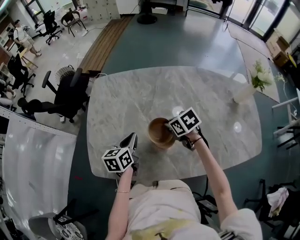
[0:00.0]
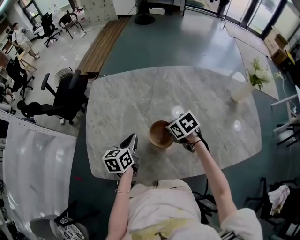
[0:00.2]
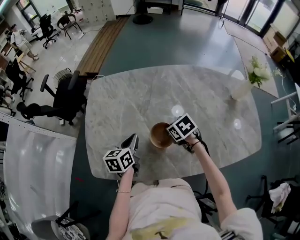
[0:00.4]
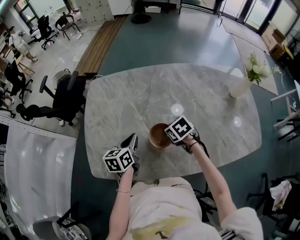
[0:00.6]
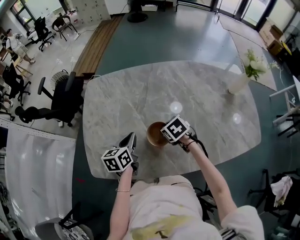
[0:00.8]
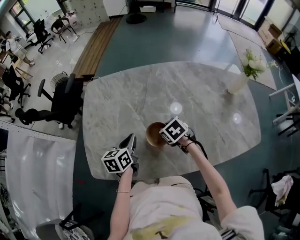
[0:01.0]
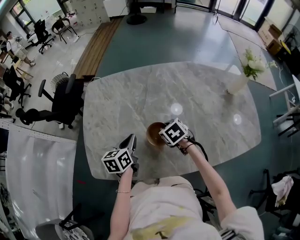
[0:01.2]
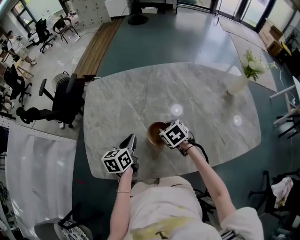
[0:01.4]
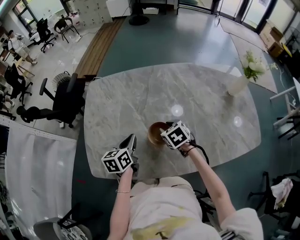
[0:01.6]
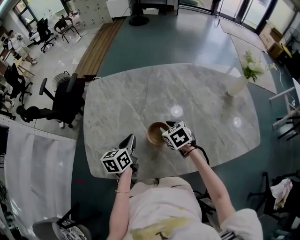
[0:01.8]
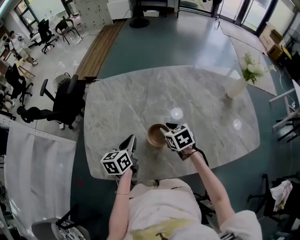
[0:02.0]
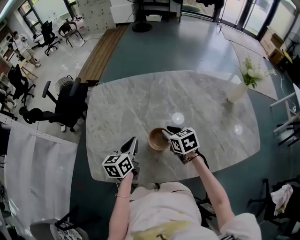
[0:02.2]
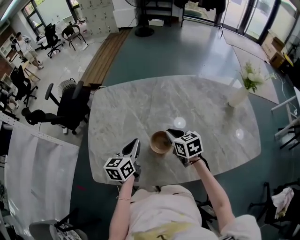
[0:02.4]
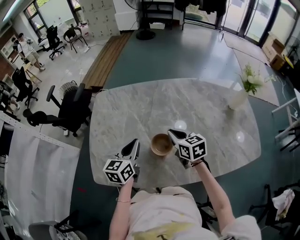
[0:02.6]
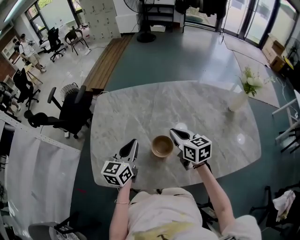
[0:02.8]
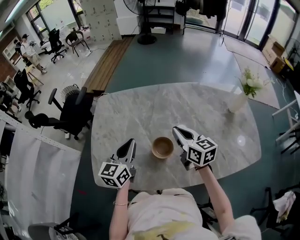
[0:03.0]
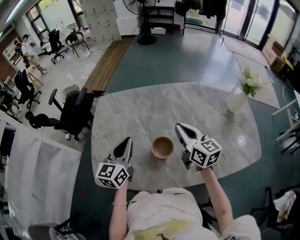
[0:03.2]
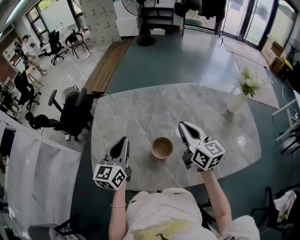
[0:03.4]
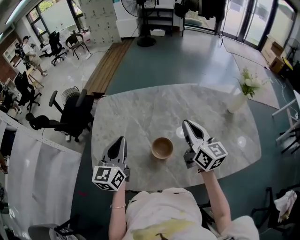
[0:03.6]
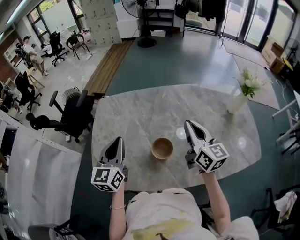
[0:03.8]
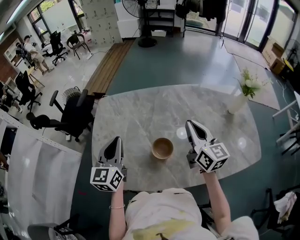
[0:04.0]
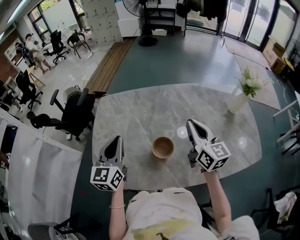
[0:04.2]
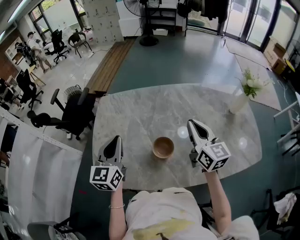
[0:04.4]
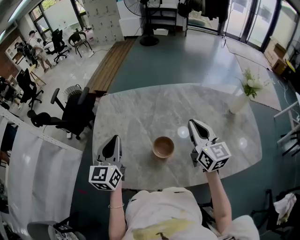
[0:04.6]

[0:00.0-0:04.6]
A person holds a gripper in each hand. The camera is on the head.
0:00.0 to 0:01.6: The right gripper opens.
0:01.6 to 0:03.0: The grippers both shift upward by approximately 15 cm. The left gripper changes its angle by some 30 degrees. The right gripper points its fingers approximately 40 degrees further upward, and closes up.
0:03.0 to 0:04.6: The right gripper heads upward and to the right, covering approximately 10 cm. The left gripper is displaced upward and to the left by about 10 cm.

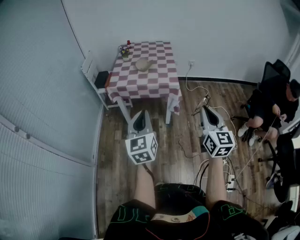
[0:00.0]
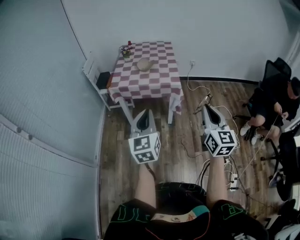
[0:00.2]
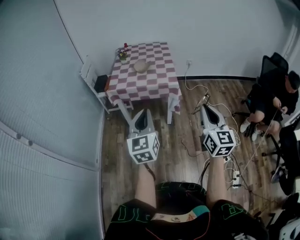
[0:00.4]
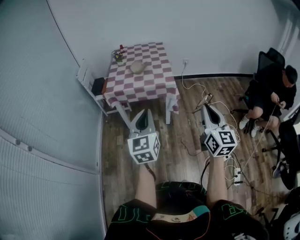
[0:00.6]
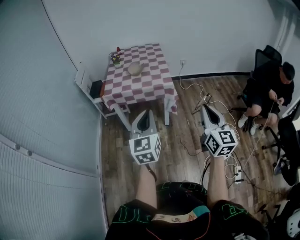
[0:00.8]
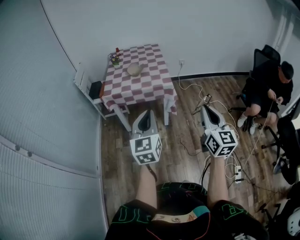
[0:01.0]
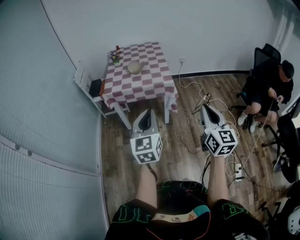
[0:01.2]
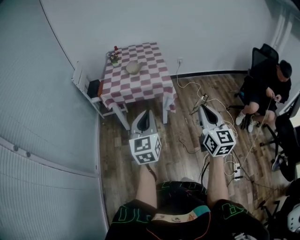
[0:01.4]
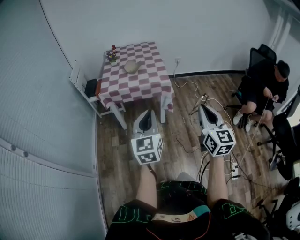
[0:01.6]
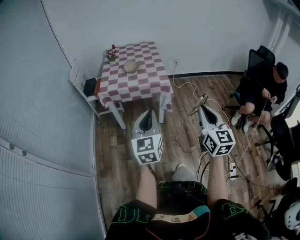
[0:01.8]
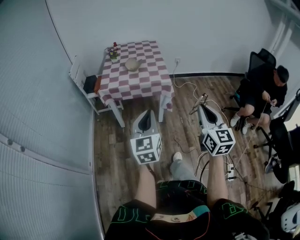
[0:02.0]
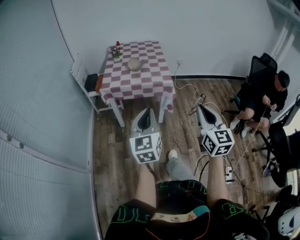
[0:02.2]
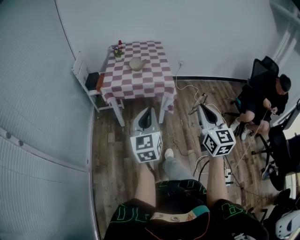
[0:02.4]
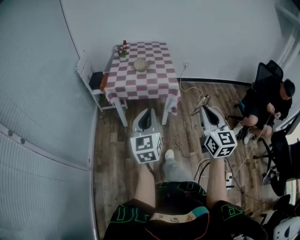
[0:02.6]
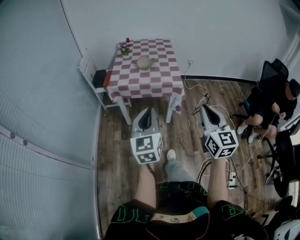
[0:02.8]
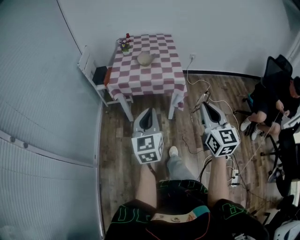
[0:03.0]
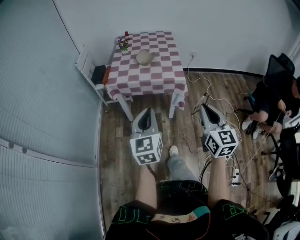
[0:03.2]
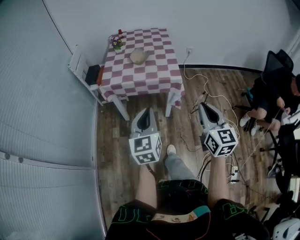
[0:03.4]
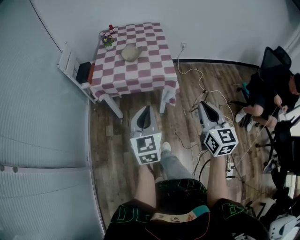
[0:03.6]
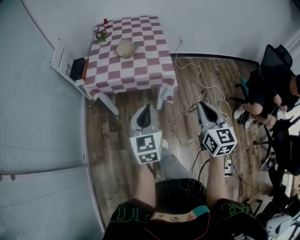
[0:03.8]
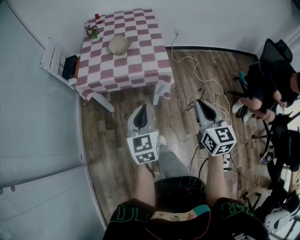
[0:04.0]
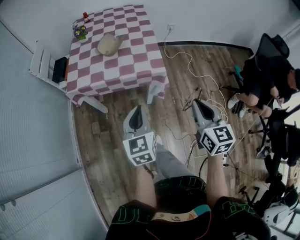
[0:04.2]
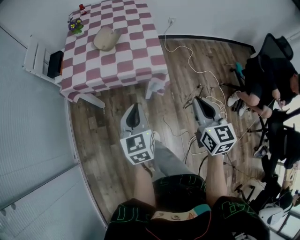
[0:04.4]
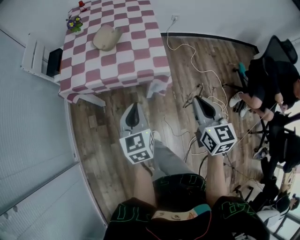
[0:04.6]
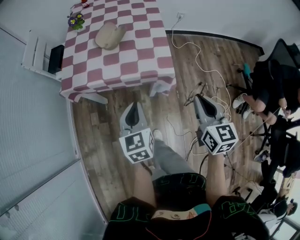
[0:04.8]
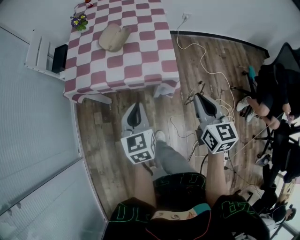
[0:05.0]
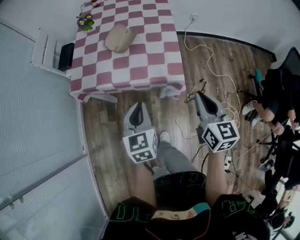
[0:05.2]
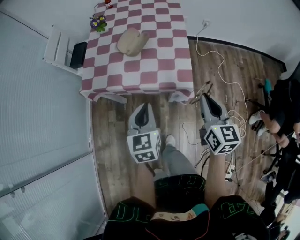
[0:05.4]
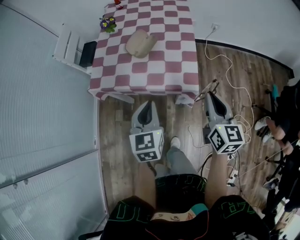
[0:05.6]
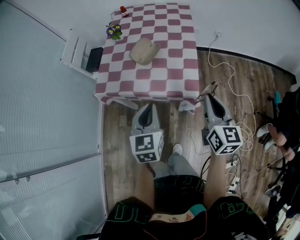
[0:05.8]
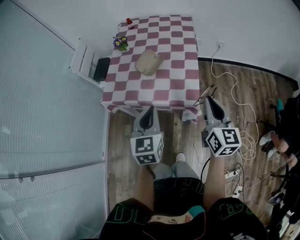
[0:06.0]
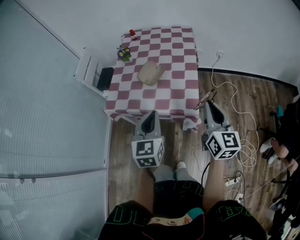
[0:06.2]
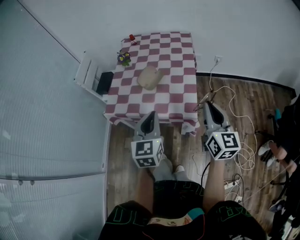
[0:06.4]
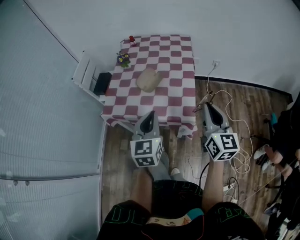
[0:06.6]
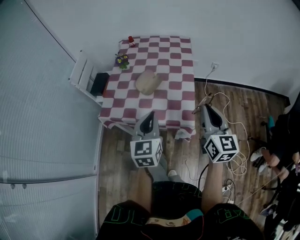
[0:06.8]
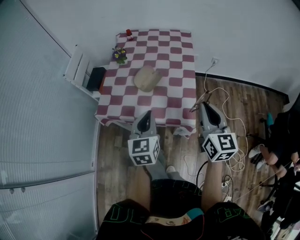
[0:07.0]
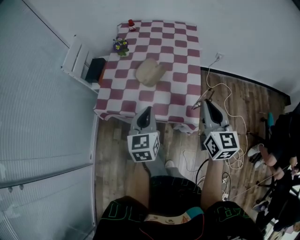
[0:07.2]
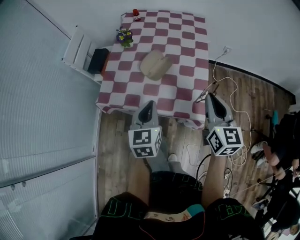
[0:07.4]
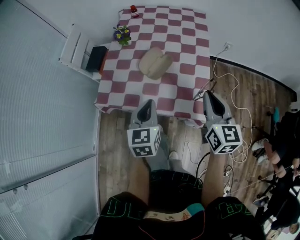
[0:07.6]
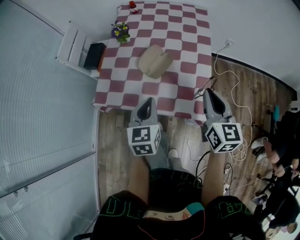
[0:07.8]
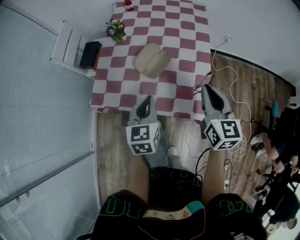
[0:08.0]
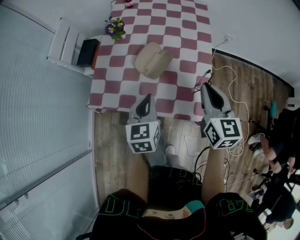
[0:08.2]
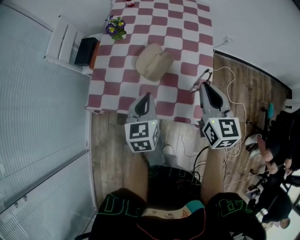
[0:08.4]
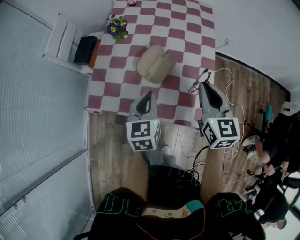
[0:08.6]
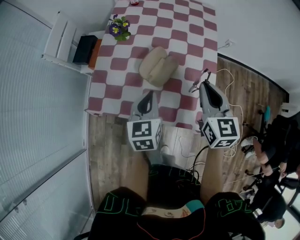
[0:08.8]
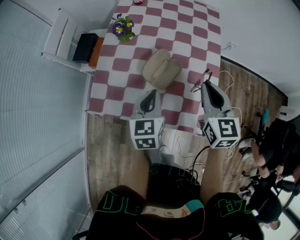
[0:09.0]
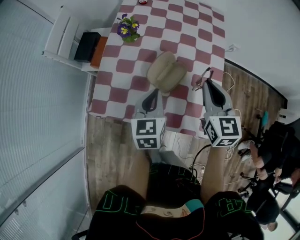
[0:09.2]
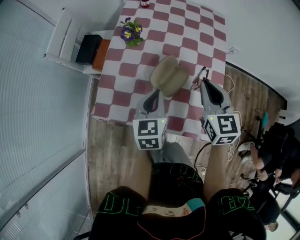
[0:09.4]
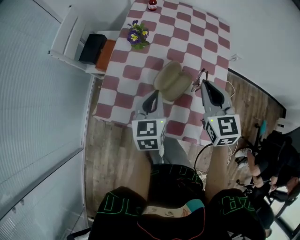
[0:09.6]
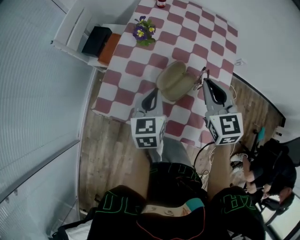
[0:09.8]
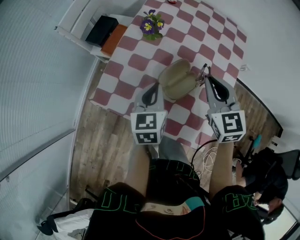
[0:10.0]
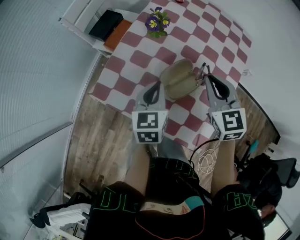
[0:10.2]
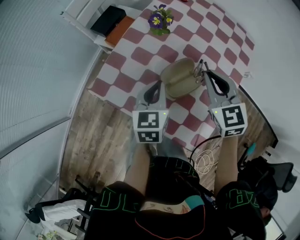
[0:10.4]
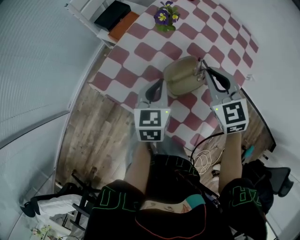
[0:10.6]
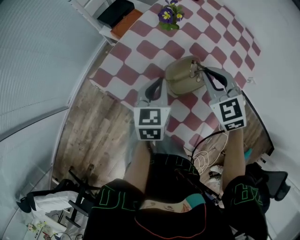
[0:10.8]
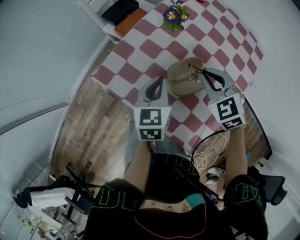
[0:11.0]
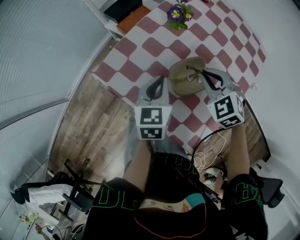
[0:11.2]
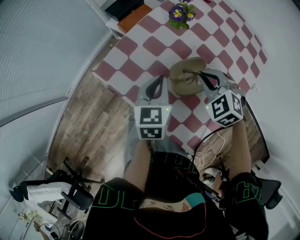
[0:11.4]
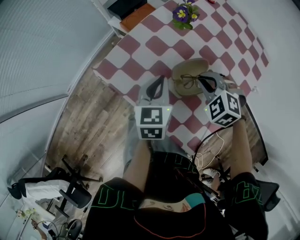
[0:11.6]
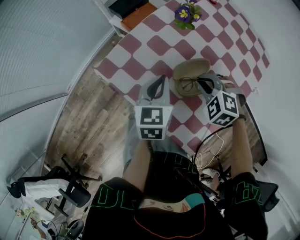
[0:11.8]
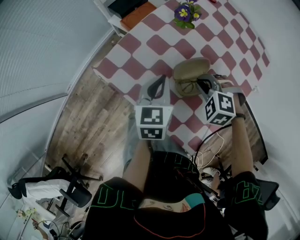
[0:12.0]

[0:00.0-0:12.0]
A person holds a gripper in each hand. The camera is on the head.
0:00.0 to 0:01.6: The grippers move only a little.
0:01.6 to 0:03.0: The left gripper moves roughly 5 cm. The right gripper travels forward by approximately 5 cm.
0:03.0 to 0:04.4: The left gripper shifts some 25 cm forward and downward; the right gripper is displaced forward, downward and to the right by some 25 cm.
0:04.4 to 0:06.0: The right gripper travels forward by approximately 20 cm; the left gripper moves forward and upward, some 15 cm.
0:06.0 to 0:07.6: The left gripper is displaced forward and downward by about 10 cm; the right gripper moves forward, approximately 10 cm.
0:07.6 to 0:09.0: The right gripper heads forward and to the left, covering roughly 15 cm; the left gripper travels forward by roughly 10 cm.
0:09.0 to 0:10.4: The left gripper is displaced forward by about 5 cm. Meanwhile the right gripper heads forward and to the left, covering approximately 15 cm, and changes its angle by approximately 40 degrees.
0:10.4 to 0:12.0: The right gripper is displaced downward by about 15 cm, and tilts its fingers about 40 degrees downward.

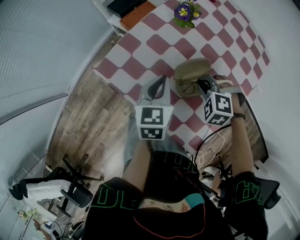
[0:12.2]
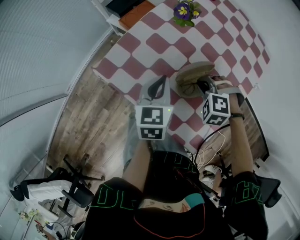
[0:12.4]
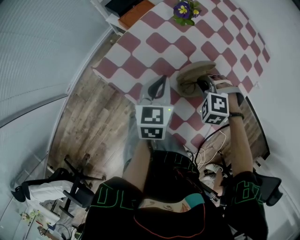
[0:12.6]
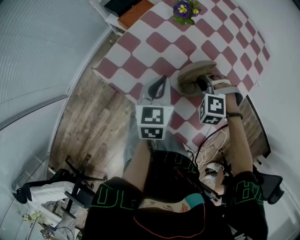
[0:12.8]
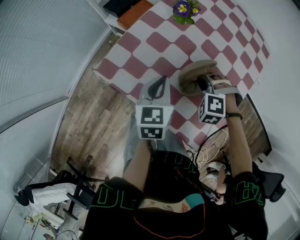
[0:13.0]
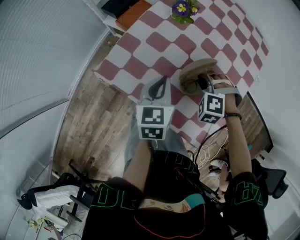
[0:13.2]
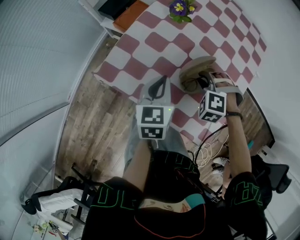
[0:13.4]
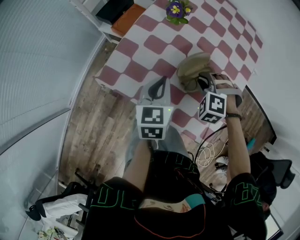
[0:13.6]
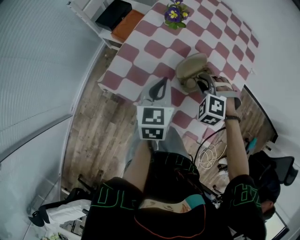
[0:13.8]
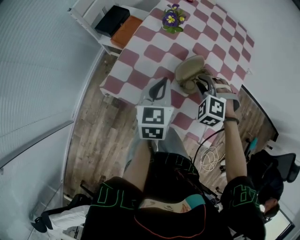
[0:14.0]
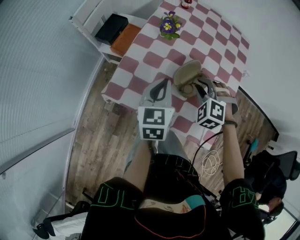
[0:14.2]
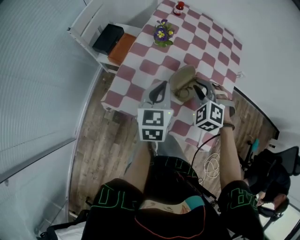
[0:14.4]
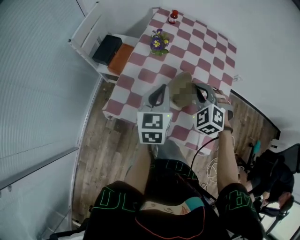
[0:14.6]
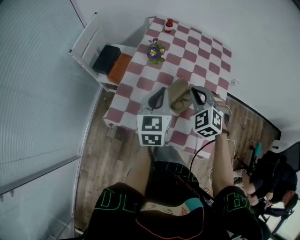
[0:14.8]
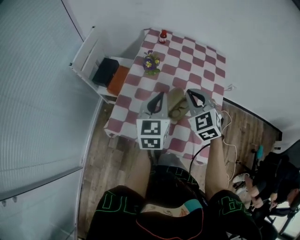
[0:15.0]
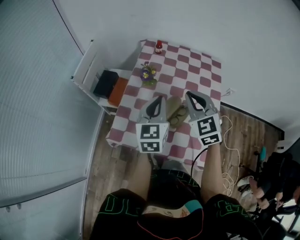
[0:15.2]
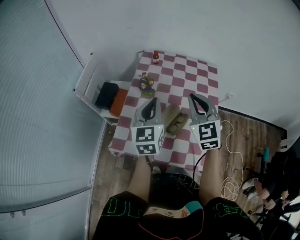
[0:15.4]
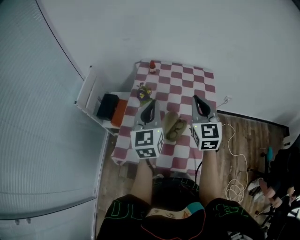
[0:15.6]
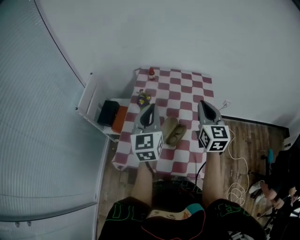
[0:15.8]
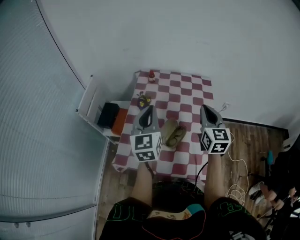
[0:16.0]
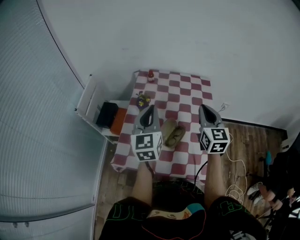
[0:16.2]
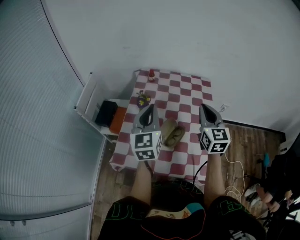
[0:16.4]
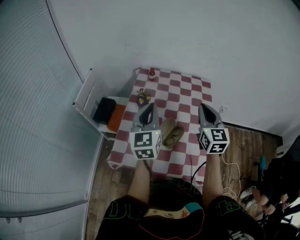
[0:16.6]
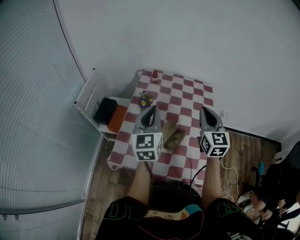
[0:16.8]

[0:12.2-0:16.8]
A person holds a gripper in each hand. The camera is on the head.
0:12.2 to 0:13.8: The right gripper swivels some 20 degrees.
0:13.8 to 0:15.2: The right gripper heads upward, covering about 20 cm, angles its fingers upward, by some 40 degrees, and closes. Meanwhile the left gripper goes approximately 15 cm upward and forward, and rotates roughly 20 degrees.
0:15.2 to 0:16.8: The right gripper moves to the right, about 10 cm, and turns by approximately 30 degrees. Meanwhile the left gripper shifts about 5 cm upward.

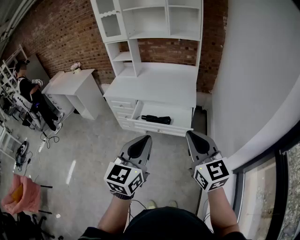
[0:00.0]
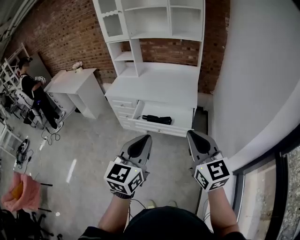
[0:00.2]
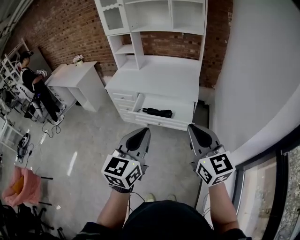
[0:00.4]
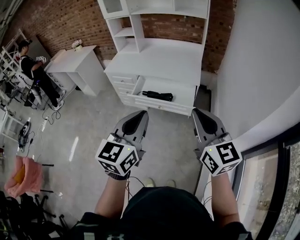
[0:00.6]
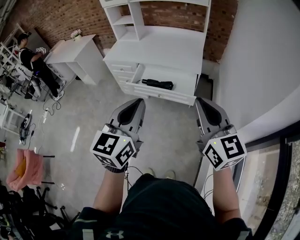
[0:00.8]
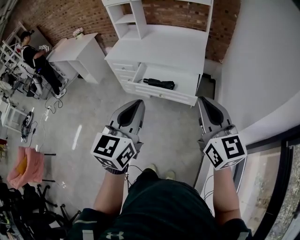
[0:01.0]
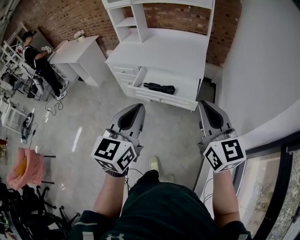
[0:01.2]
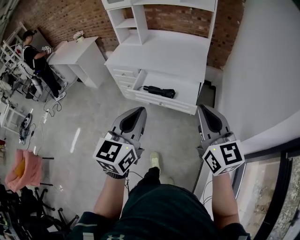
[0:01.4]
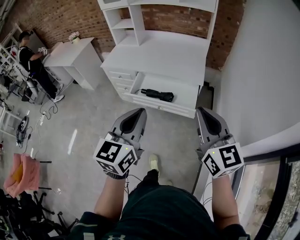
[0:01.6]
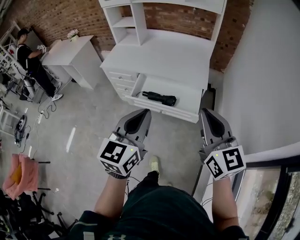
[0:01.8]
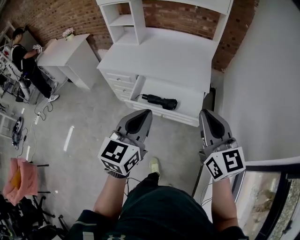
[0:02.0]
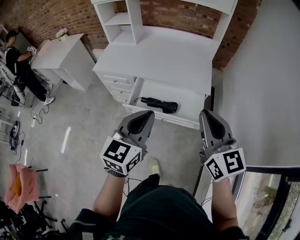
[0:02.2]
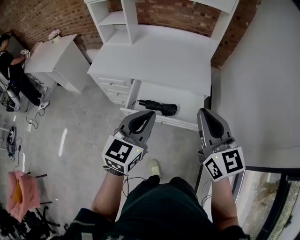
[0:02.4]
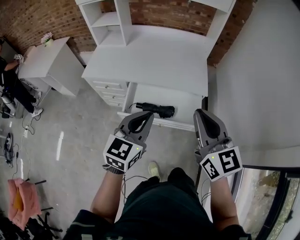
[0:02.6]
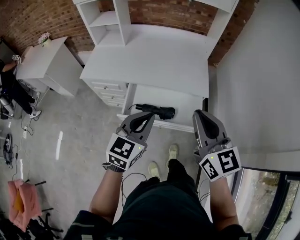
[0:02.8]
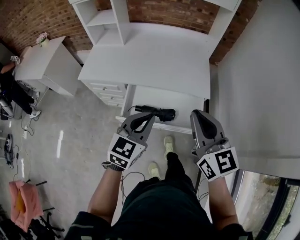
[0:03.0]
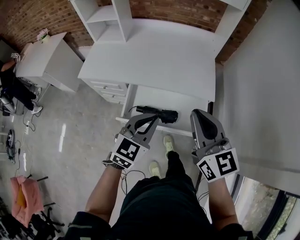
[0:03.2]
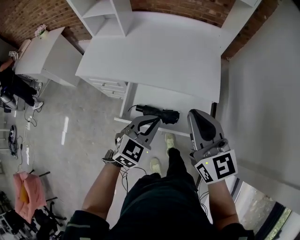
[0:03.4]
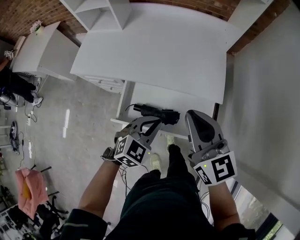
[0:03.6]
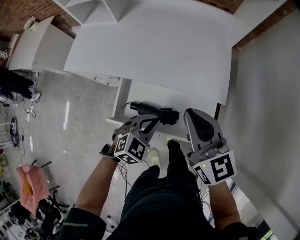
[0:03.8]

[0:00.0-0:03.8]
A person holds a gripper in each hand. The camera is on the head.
0:00.0 to 0:01.2: The right gripper moves to the right, about 5 cm.
0:01.2 to 0:02.6: The left gripper goes about 30 cm forward and downward, and turns by some 20 degrees; the right gripper heads forward and to the left, covering approximately 30 cm.
0:02.6 to 0:03.8: The right gripper is displaced forward and downward by some 25 cm. The left gripper goes about 25 cm downward and forward, and rotates about 40 degrees.
